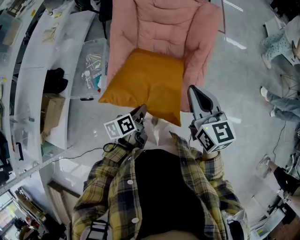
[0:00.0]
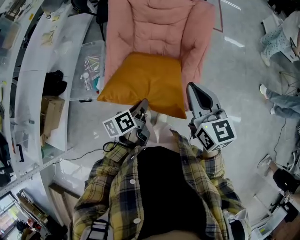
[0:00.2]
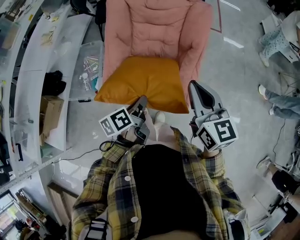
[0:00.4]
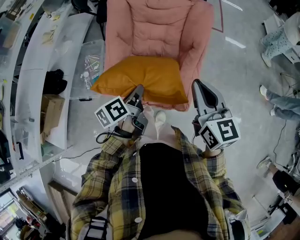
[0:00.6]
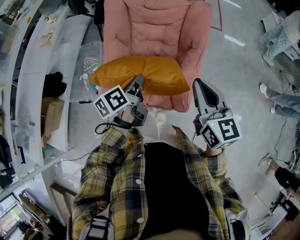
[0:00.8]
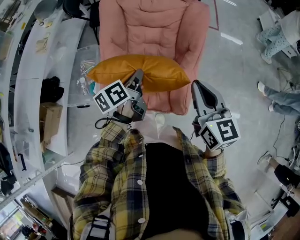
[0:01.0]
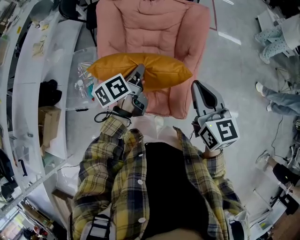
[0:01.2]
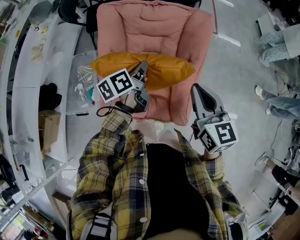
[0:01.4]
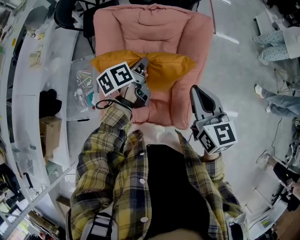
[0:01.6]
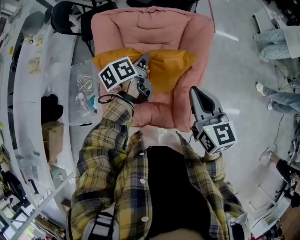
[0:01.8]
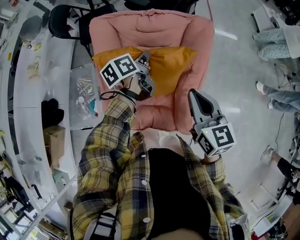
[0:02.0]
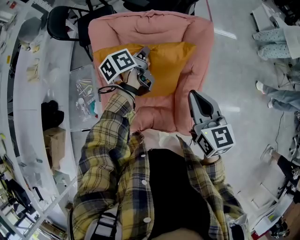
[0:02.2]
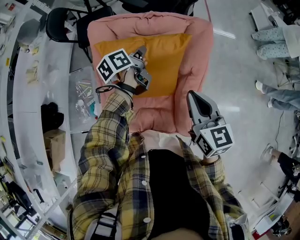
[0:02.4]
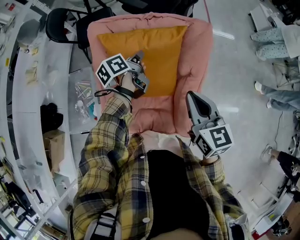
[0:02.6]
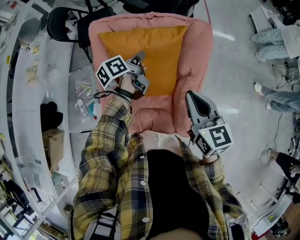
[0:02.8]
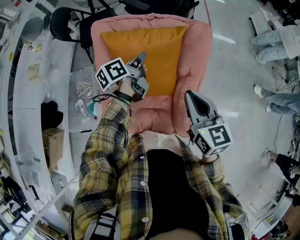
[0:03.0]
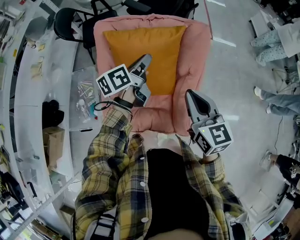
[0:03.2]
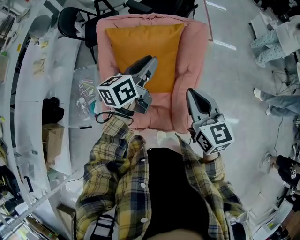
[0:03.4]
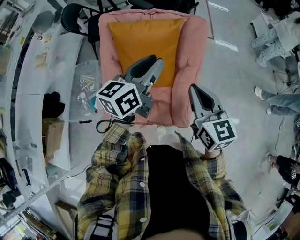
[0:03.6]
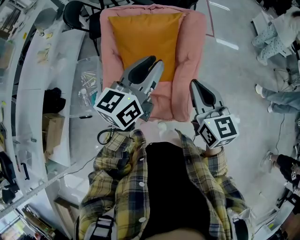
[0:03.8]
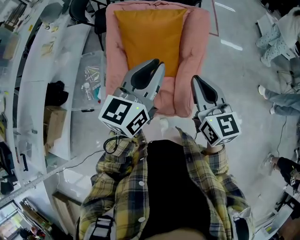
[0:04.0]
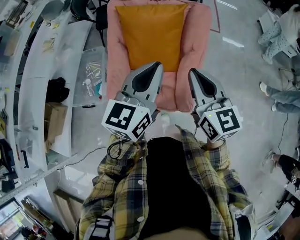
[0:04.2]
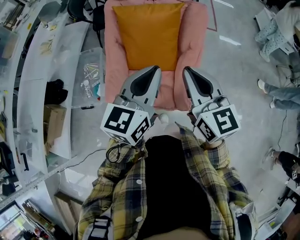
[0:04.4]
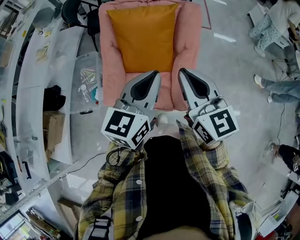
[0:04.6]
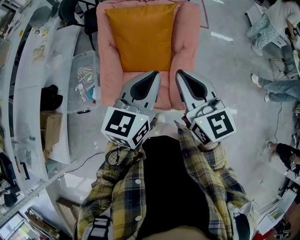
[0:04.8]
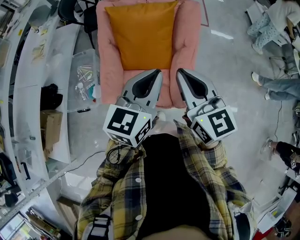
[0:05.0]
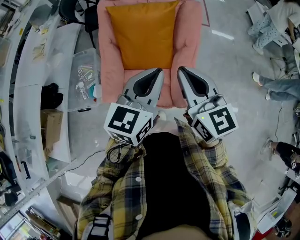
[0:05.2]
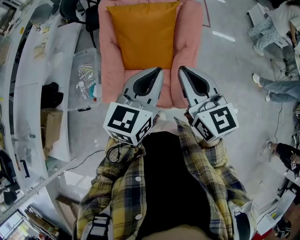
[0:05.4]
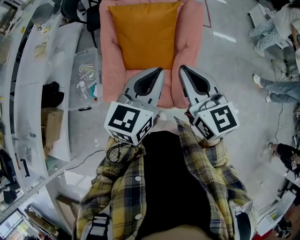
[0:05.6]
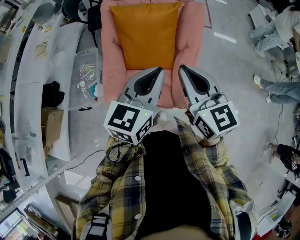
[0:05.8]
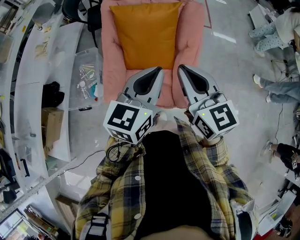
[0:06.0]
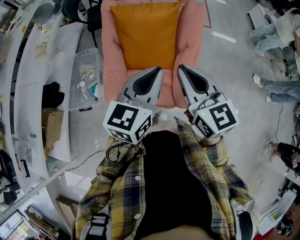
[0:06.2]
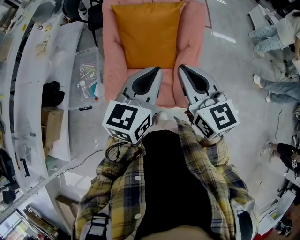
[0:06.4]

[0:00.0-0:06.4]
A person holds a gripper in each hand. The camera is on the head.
0:00.0 to 0:01.6: The left gripper travels forward by roughly 35 cm. The right gripper goes approximately 15 cm forward.
0:01.6 to 0:03.2: The left gripper travels forward and back again, about 10 cm each way.
0:03.2 to 0:04.8: The left gripper goes about 30 cm backward and upward, and rotates around the line of its fingers by approximately 40 degrees, clockwise from behind; the right gripper goes approximately 15 cm backward and upward.
0:04.8 to 0:06.4: The grippers stay close to where they were, moving slightly.

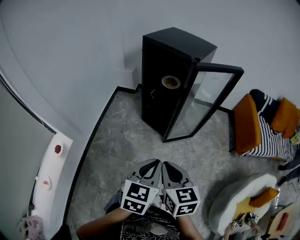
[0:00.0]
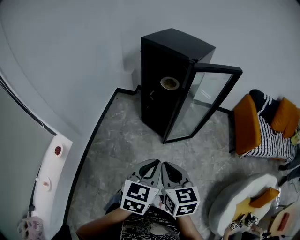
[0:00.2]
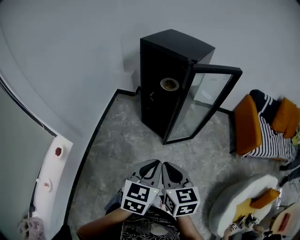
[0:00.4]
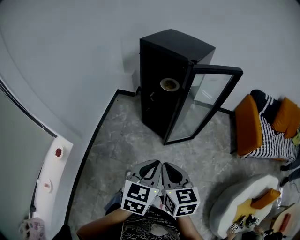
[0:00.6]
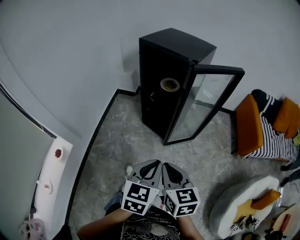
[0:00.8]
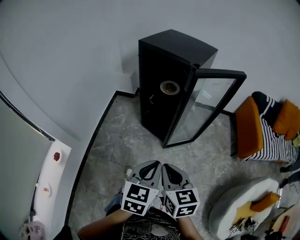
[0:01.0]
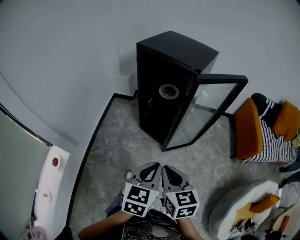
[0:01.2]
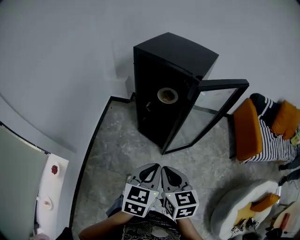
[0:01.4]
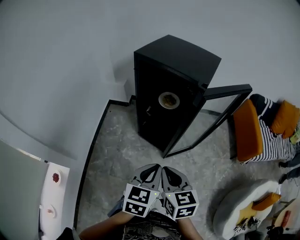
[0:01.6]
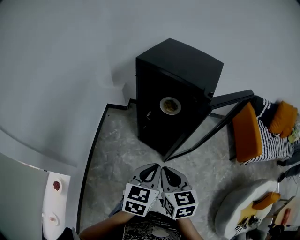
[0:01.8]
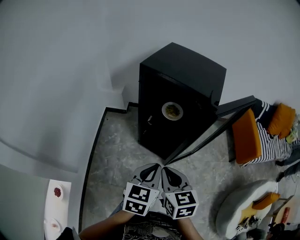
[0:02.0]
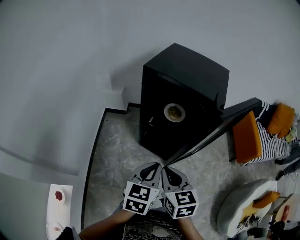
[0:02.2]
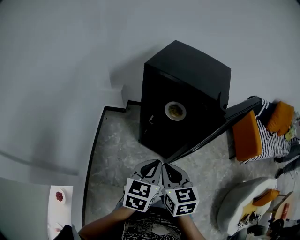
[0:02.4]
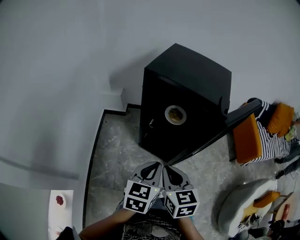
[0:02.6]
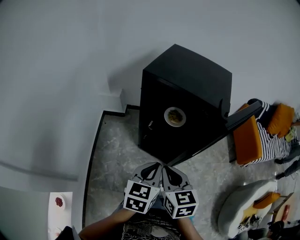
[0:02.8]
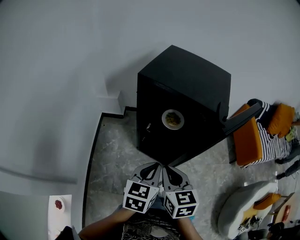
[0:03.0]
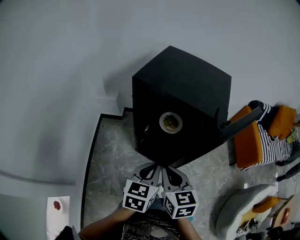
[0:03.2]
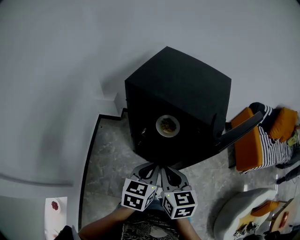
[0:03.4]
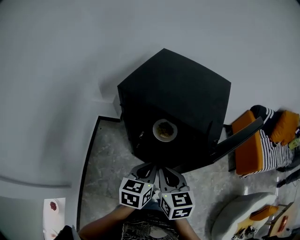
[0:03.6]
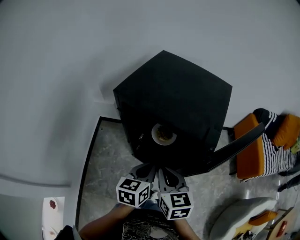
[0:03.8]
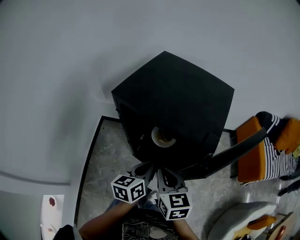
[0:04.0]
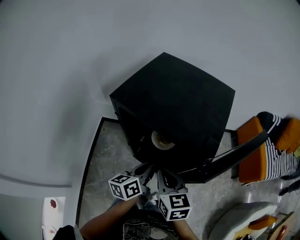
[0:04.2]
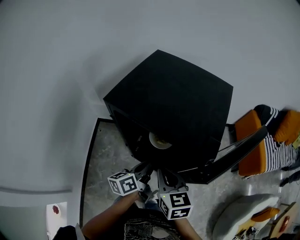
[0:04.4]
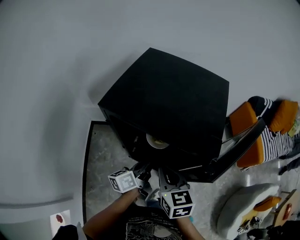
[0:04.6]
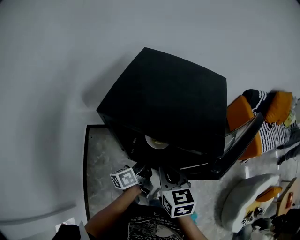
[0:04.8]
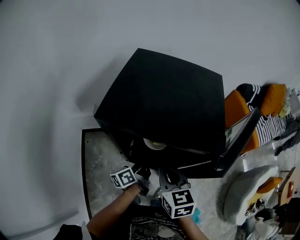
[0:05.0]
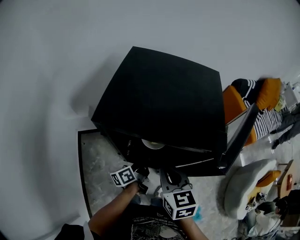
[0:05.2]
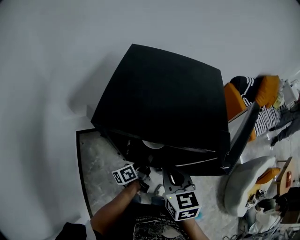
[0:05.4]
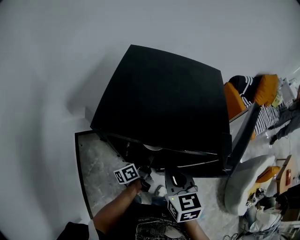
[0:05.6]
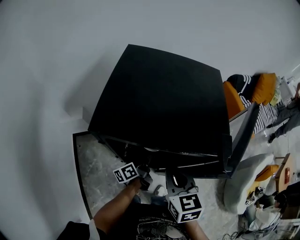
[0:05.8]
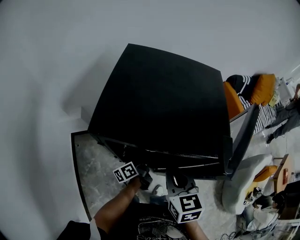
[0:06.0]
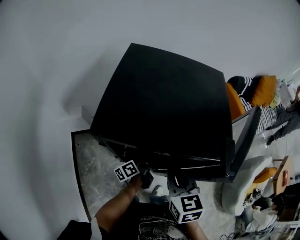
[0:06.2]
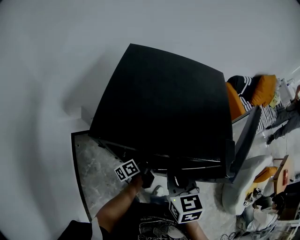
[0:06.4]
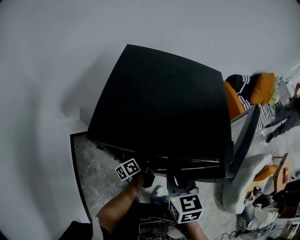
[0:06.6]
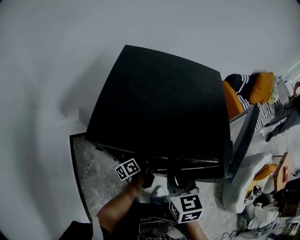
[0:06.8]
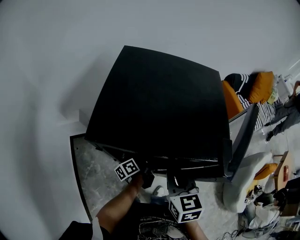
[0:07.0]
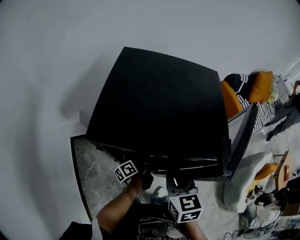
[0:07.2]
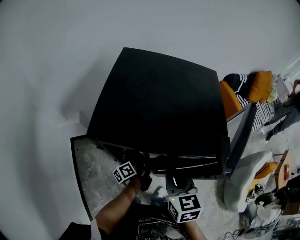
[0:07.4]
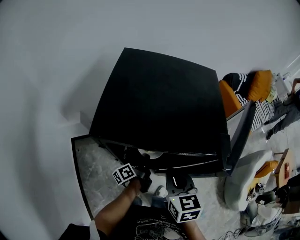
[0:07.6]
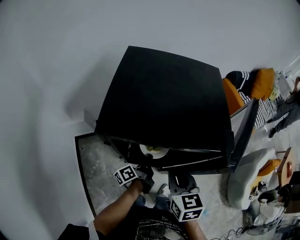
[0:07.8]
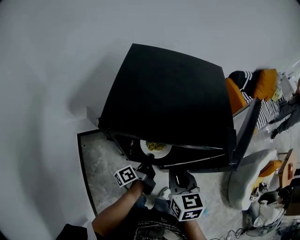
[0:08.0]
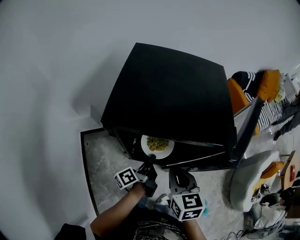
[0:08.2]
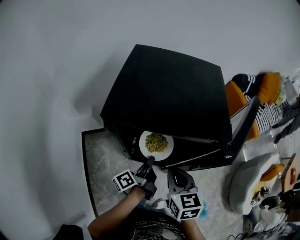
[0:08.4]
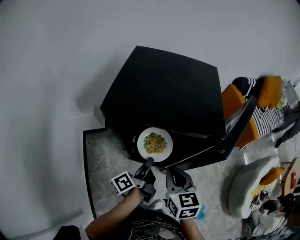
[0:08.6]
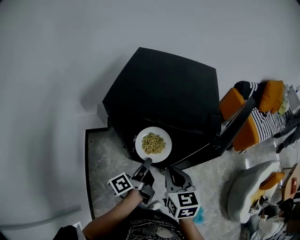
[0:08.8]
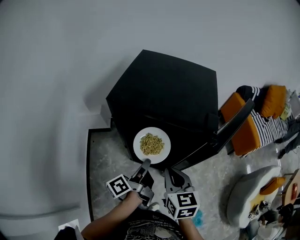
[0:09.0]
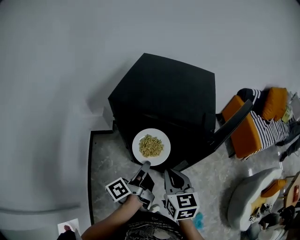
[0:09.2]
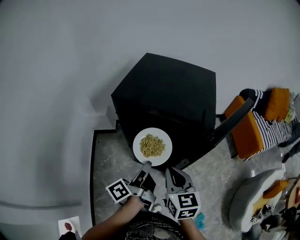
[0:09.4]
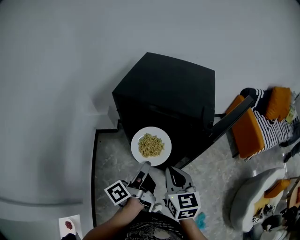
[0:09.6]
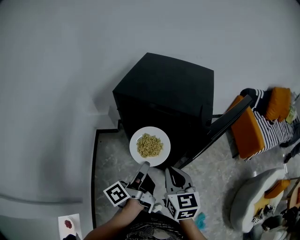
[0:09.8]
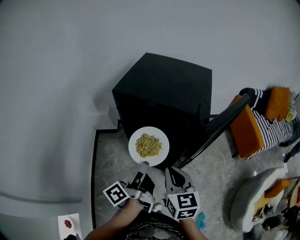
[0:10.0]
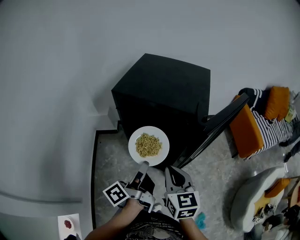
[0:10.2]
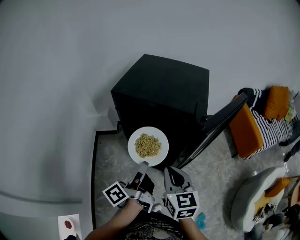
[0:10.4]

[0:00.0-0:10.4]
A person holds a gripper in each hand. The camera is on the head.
0:00.0 to 0:01.4: The grippers both shift forward by about 15 cm.
0:01.4 to 0:03.0: The grippers both shift forward and to the left by approximately 25 cm.
0:03.0 to 0:04.4: The right gripper heads forward and to the right, covering roughly 15 cm; the left gripper shifts approximately 20 cm forward, and rolls counterclockwise, seen from behind, by some 40 degrees.
0:04.4 to 0:06.0: The right gripper rotates approximately 20 degrees. Meanwhile the left gripper goes approximately 15 cm downward and forward, turns by about 20 degrees, and opens up.
0:06.0 to 0:07.4: The left gripper closes up.
0:07.4 to 0:09.0: The right gripper travels backward by approximately 10 cm. Meanwhile the left gripper travels upward and backward by approximately 25 cm, and changes its angle by some 20 degrees.
0:09.0 to 0:10.4: The right gripper is displaced backward by about 5 cm, while the left gripper is displaced backward and upward by some 10 cm.

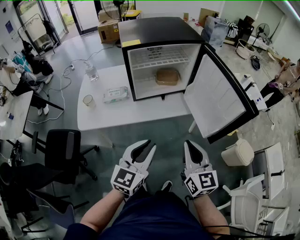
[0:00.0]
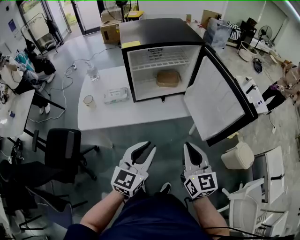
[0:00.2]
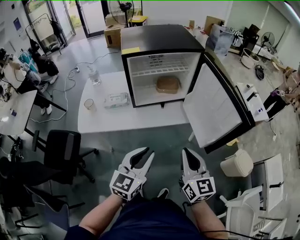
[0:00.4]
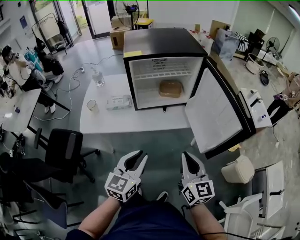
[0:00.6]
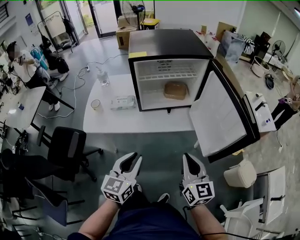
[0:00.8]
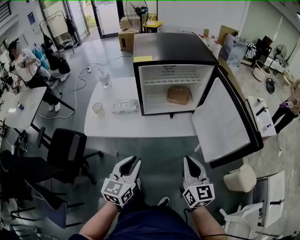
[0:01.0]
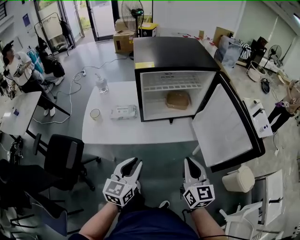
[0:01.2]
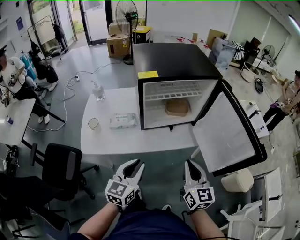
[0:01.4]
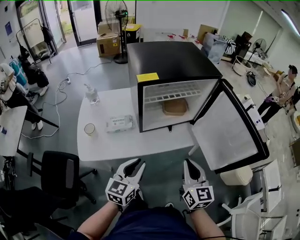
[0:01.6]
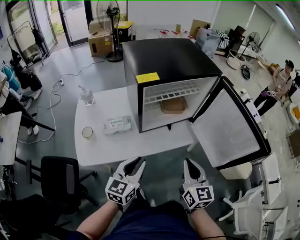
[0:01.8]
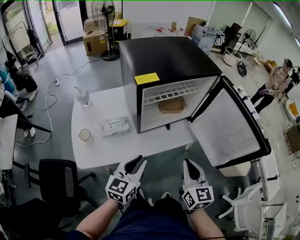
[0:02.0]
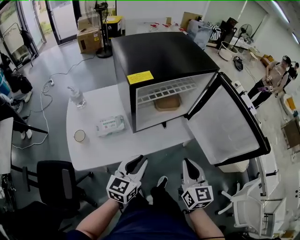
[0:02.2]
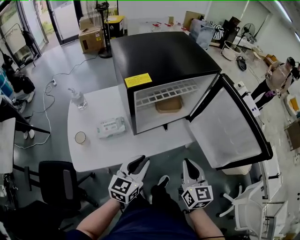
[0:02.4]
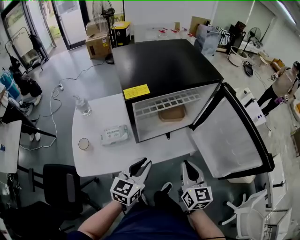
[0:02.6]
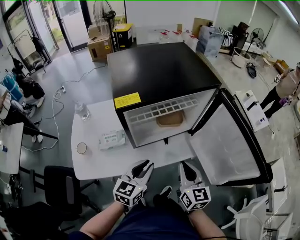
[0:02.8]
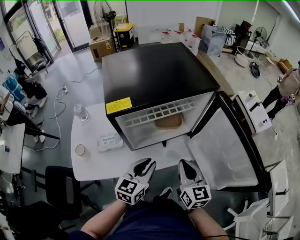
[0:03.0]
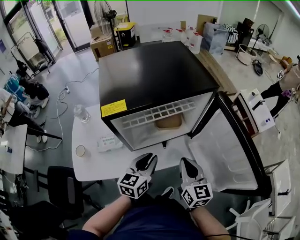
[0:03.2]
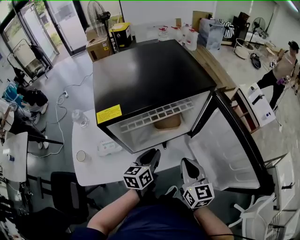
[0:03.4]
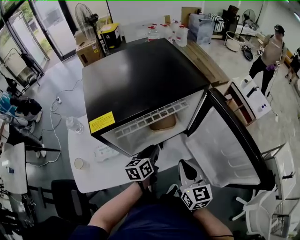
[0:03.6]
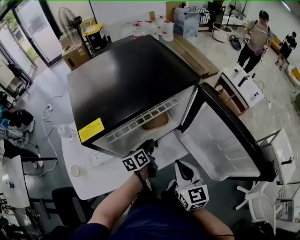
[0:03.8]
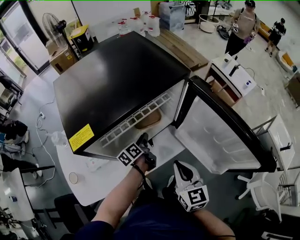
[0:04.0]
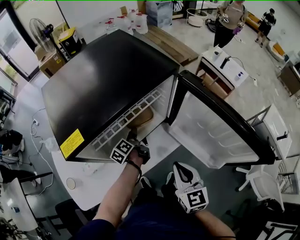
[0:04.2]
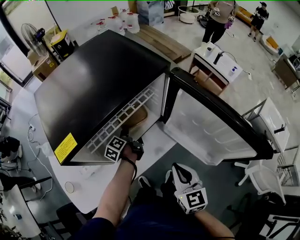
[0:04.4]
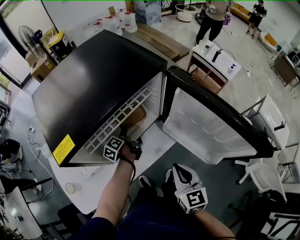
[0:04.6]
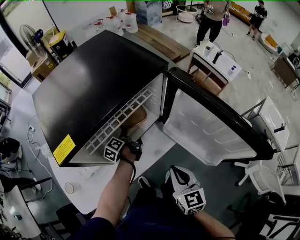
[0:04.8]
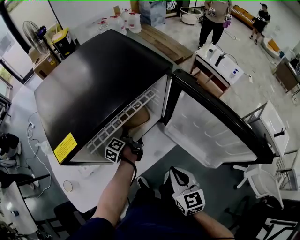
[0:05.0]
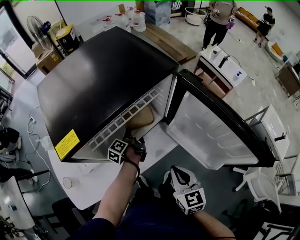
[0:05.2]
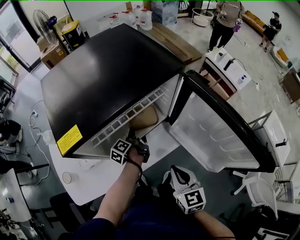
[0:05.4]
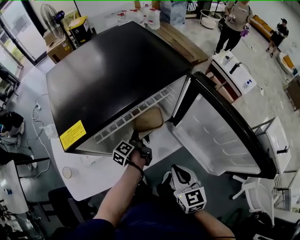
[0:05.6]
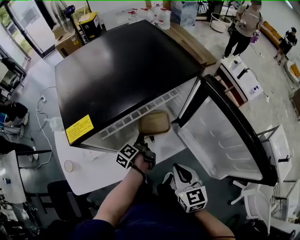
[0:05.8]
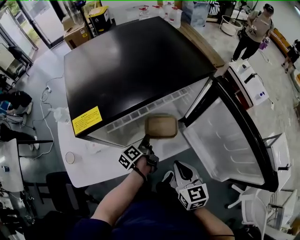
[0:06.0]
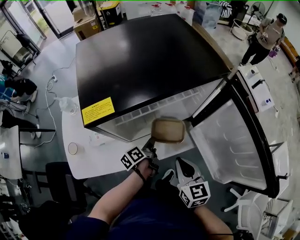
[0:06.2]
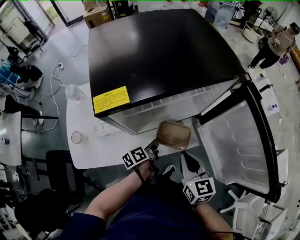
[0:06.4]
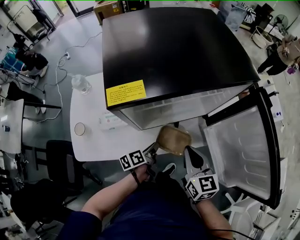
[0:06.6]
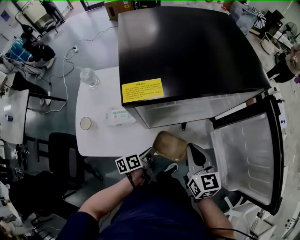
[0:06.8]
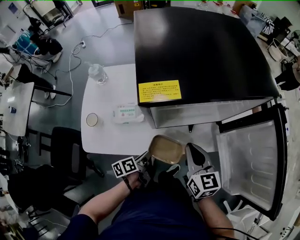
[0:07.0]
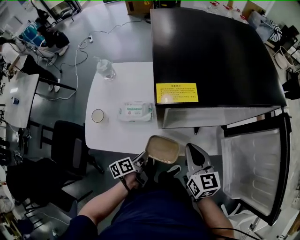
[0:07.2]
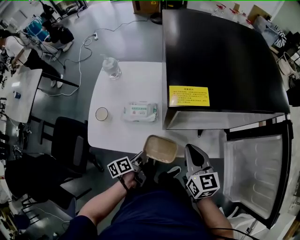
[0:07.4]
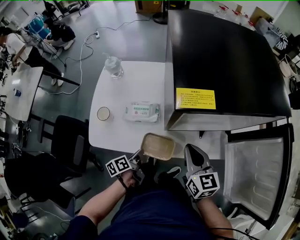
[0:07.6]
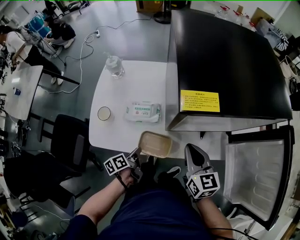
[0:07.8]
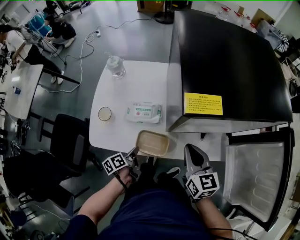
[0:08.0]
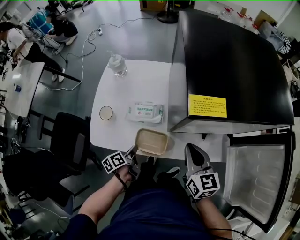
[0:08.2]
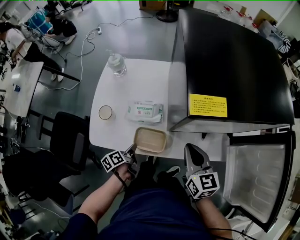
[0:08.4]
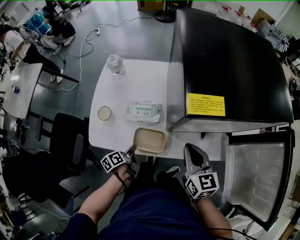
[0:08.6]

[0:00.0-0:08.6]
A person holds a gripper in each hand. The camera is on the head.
0:00.0 to 0:01.4: The left gripper heads to the left and forward, covering some 15 cm; the right gripper heads forward, covering some 10 cm.
0:01.4 to 0:02.8: The grippers both shift forward by some 15 cm.
0:02.8 to 0:04.4: The left gripper goes approximately 30 cm forward and downward, and twists approximately 60 degrees counterclockwise, seen from behind. The right gripper shifts roughly 5 cm to the right.
0:04.4 to 0:05.8: The left gripper is displaced backward by roughly 5 cm, and closes up.
0:05.8 to 0:07.2: The left gripper shifts approximately 30 cm backward and to the left. The right gripper is displaced to the left and forward by about 15 cm, and swivels about 20 degrees.
0:07.2 to 0:08.6: The left gripper travels to the left by approximately 10 cm, while the right gripper ends up roughly 5 cm from where it was.
